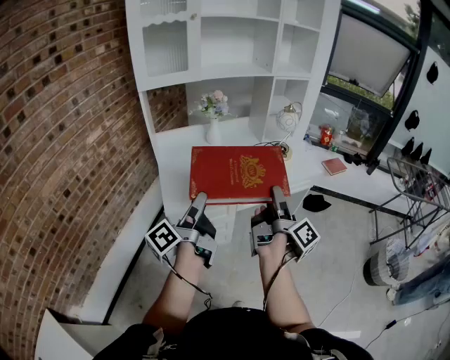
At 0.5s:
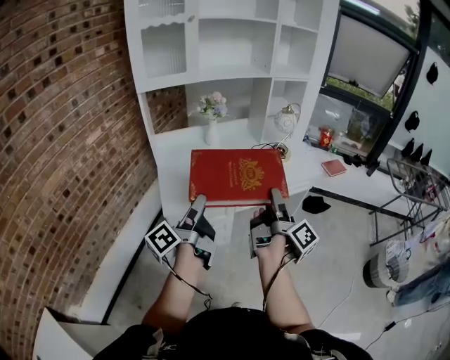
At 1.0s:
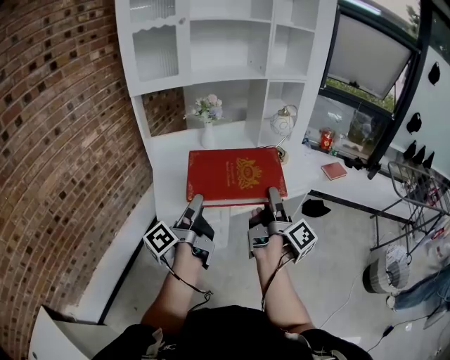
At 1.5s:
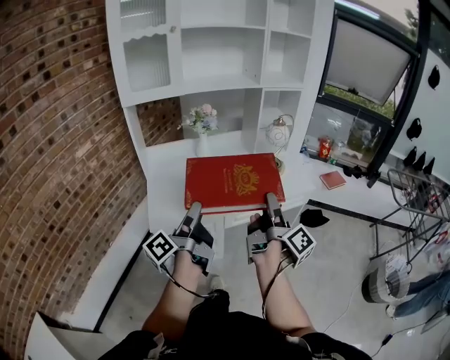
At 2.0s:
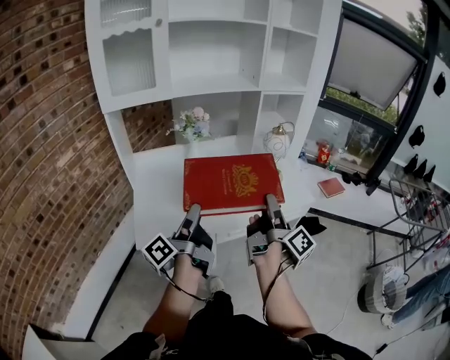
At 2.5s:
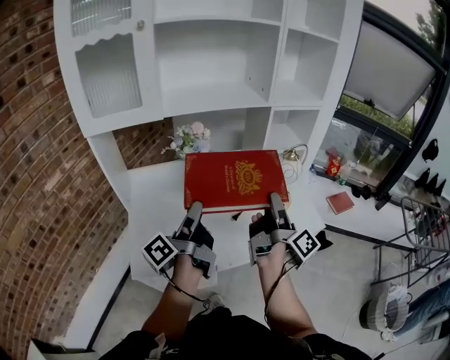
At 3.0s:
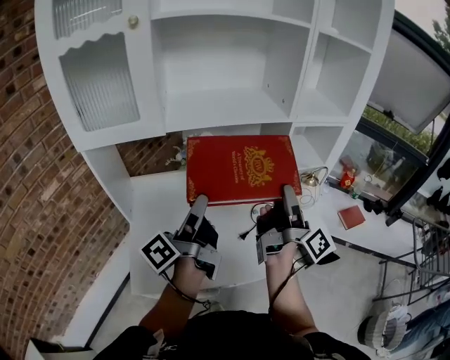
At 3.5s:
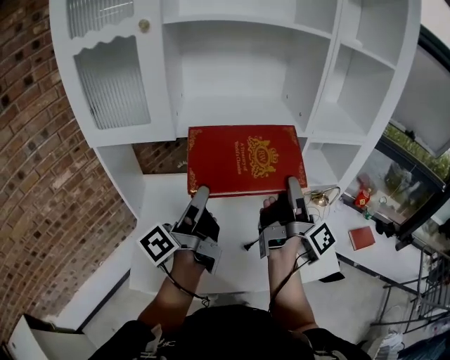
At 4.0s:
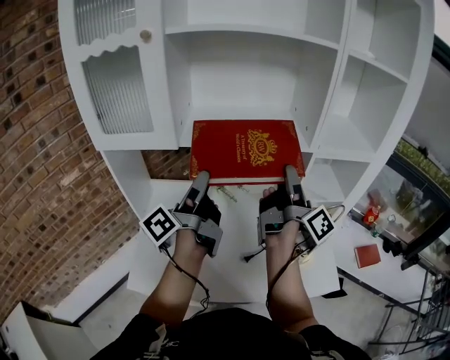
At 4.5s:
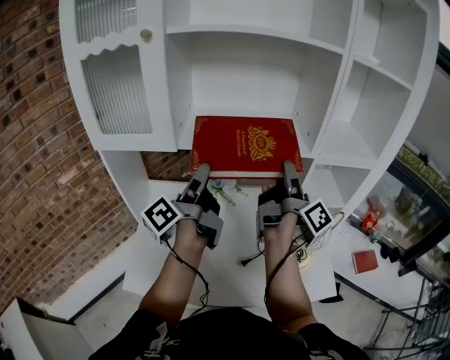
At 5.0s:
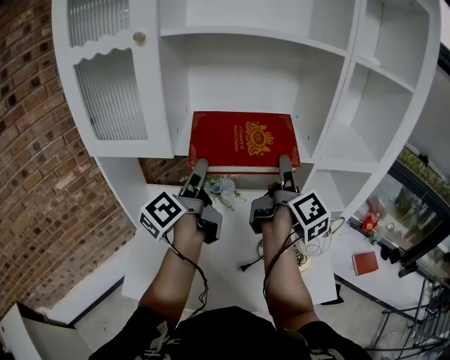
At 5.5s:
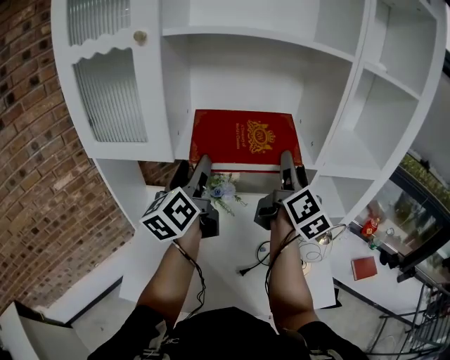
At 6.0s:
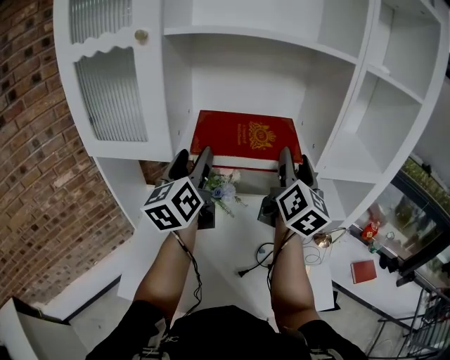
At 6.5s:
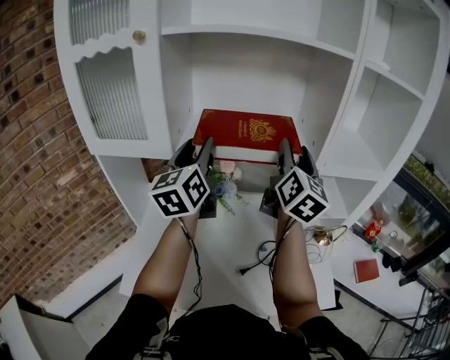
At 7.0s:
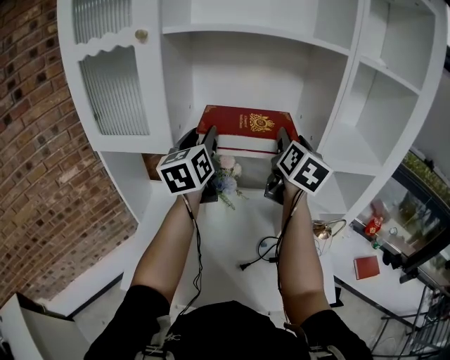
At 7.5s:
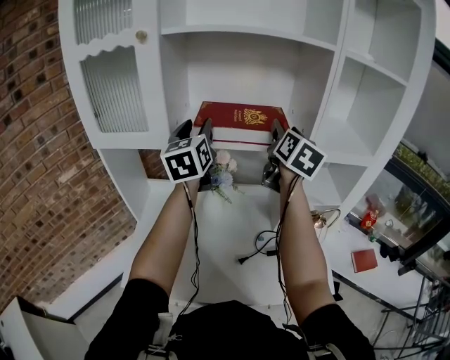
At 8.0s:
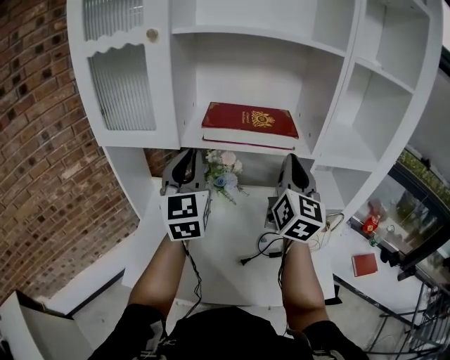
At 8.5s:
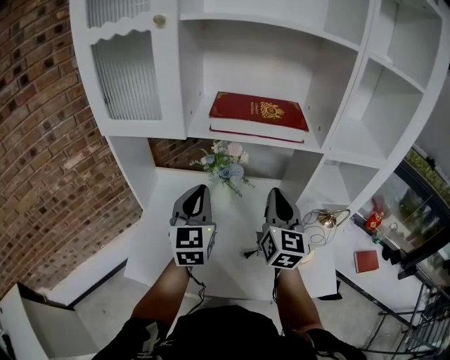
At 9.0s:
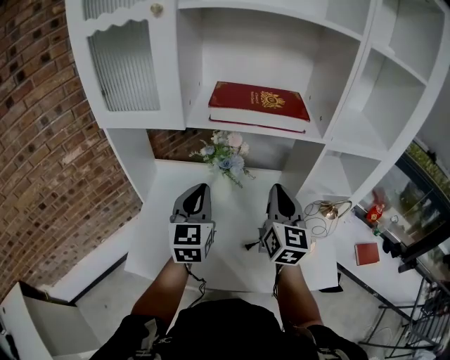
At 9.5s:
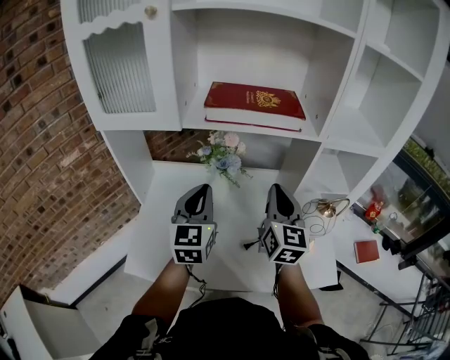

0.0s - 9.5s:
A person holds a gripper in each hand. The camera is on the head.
0.0s - 2.0s: The left gripper is displaced forward and to the right by roughly 20 cm, while the right gripper moves forward, approximately 20 cm.
2.0s - 4.0s: Both grippers move forward, about 40 cm.
4.0s - 5.5s: The grippers both shift forward by roughly 10 cm. The right gripper rolls counterclockwise, seen from behind, by about 40 degrees. Meanwhile the left gripper twists approximately 40 degrees clockwise, seen from behind.
5.5s - 7.5s: The left gripper moves forward, approximately 5 cm, changes its angle by about 30 degrees, and closes its fingers. The right gripper changes place by approximately 5 cm, and turns by approximately 30 degrees.
7.5s - 9.5s: Both grippers travel together downward and backward, about 20 cm. The right gripper closes its fingers. The left gripper closes its fingers.

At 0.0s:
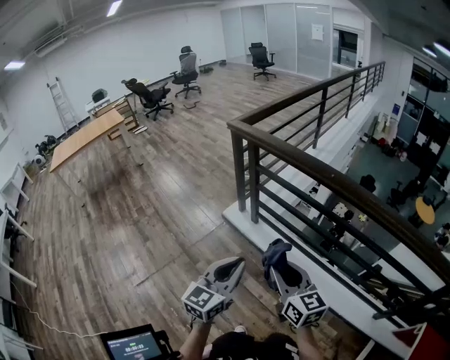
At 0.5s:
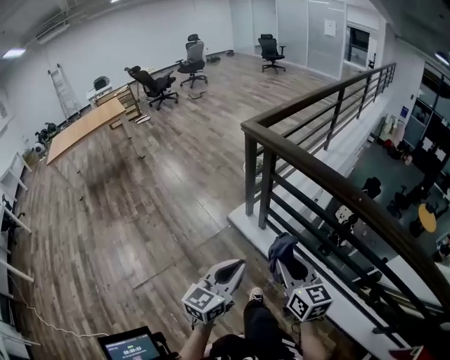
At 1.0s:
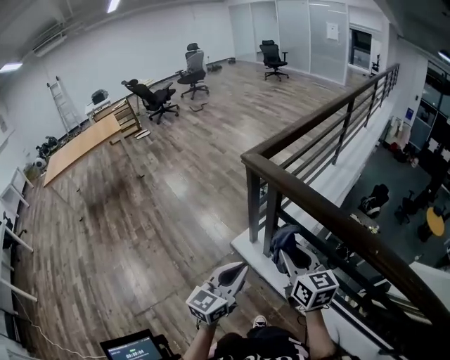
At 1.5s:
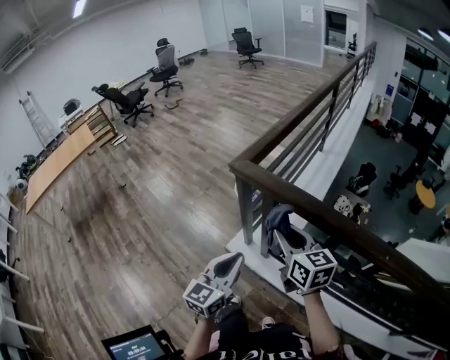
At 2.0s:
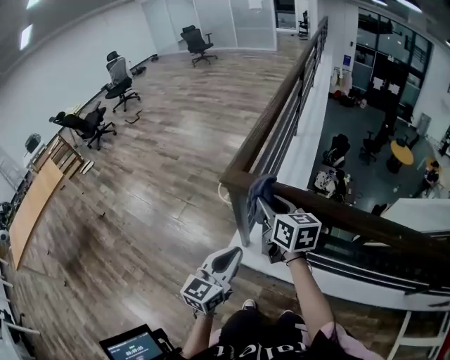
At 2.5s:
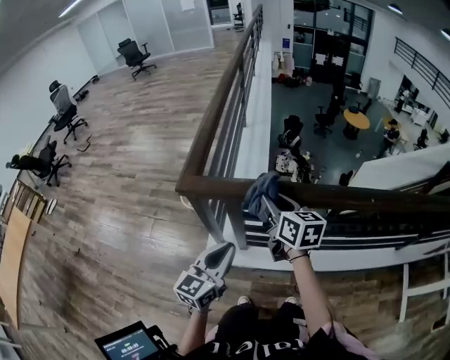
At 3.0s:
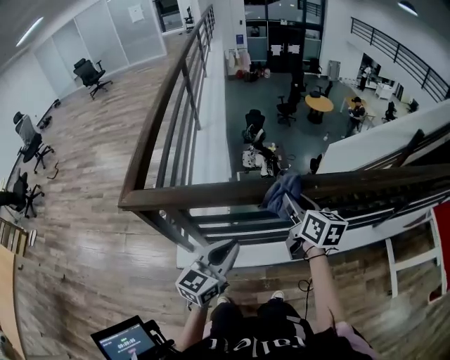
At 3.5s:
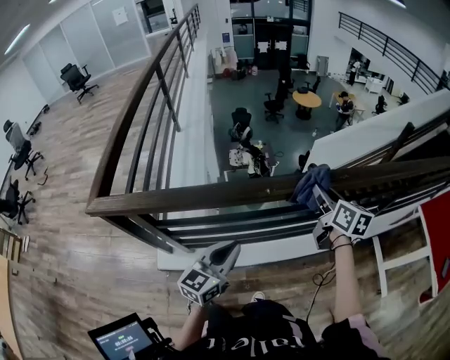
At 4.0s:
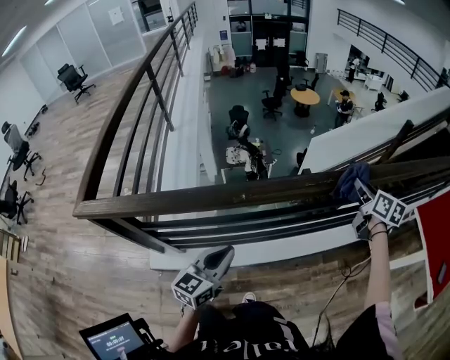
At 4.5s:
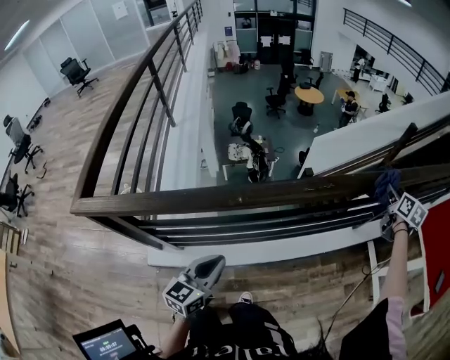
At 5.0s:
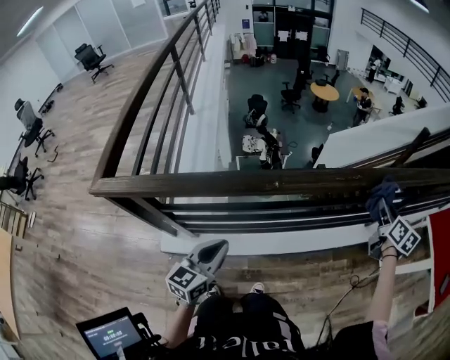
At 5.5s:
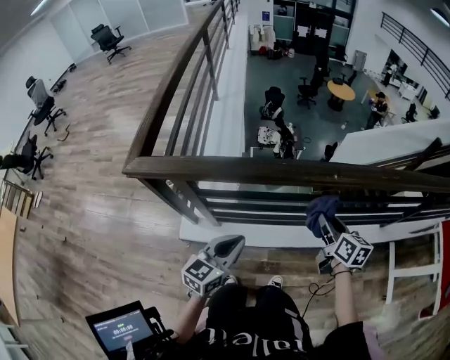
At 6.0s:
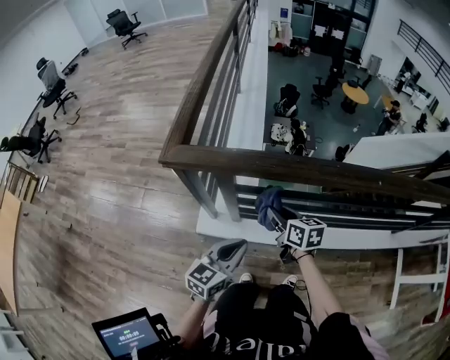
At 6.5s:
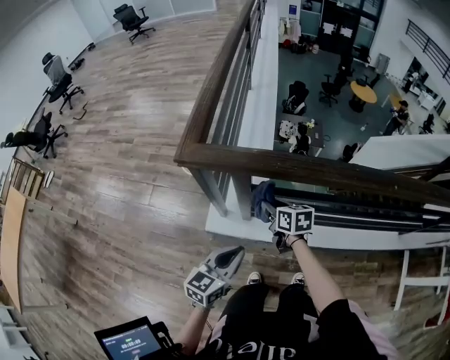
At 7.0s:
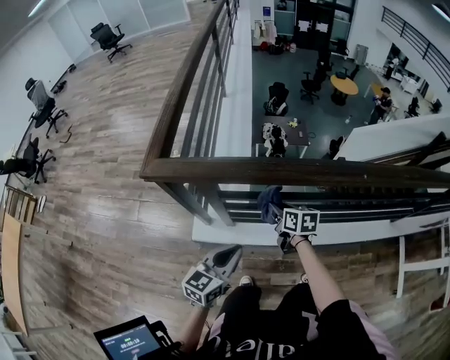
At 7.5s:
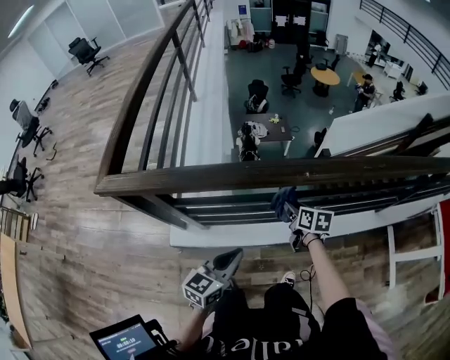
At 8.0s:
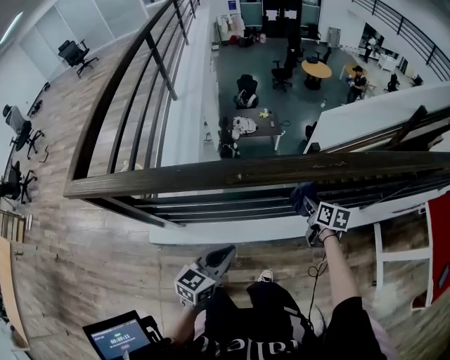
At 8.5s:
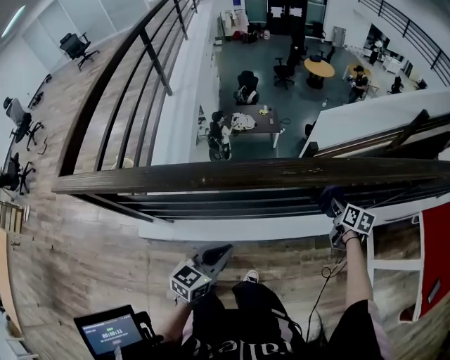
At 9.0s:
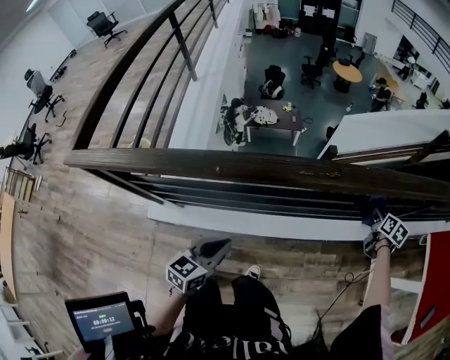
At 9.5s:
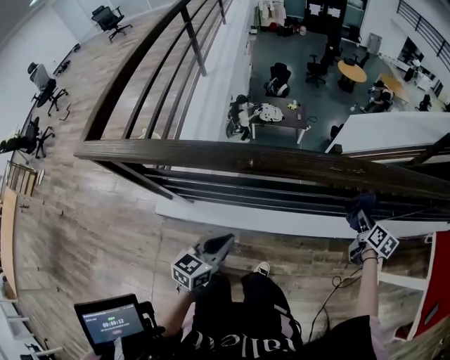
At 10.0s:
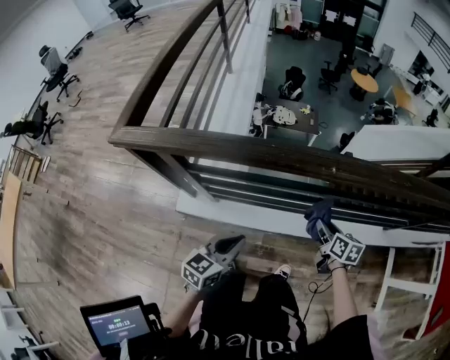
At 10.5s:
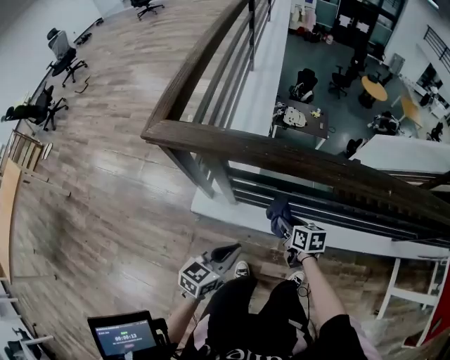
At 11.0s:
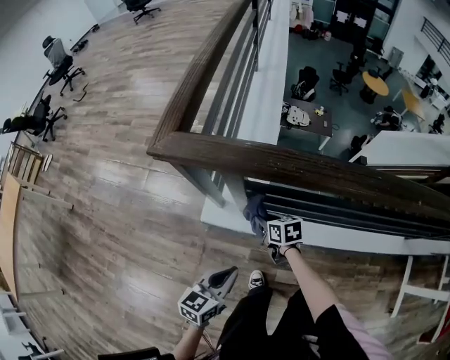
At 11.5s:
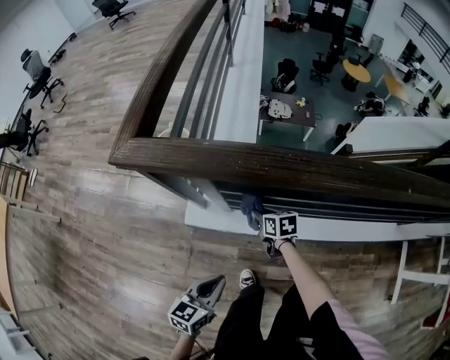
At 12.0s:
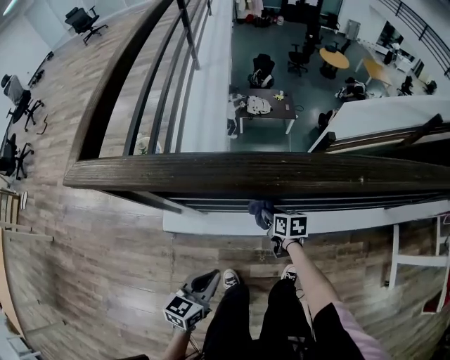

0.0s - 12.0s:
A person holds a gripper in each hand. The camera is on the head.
0.0s - 2.0s: Both grippers are carried forward, about 70 cm. The right gripper changes its angle by about 20 degrees.
2.0s - 4.0s: The two grippers travel together, roughly 70 cm. The left gripper swivels some 40 degrees; the right gripper changes its angle by some 50 degrees.
4.0s - 6.0s: The right gripper shifts by about 70 cm, and swivels roughly 40 degrees. The left gripper moves about 35 cm.
6.0s - 8.0s: The left gripper travels to the right by some 35 cm. The right gripper goes approximately 60 cm to the right, and swivels some 30 degrees.
8.0s - 10.0s: The right gripper moves backward, roughly 10 cm, and travels to the right and back again, about 35 cm each way. Meanwhile the left gripper goes roughly 15 cm to the left and backward.
10.0s - 12.0s: The right gripper goes approximately 30 cm to the left, downward and forward, while the left gripper is displaced to the left and downward by about 20 cm.

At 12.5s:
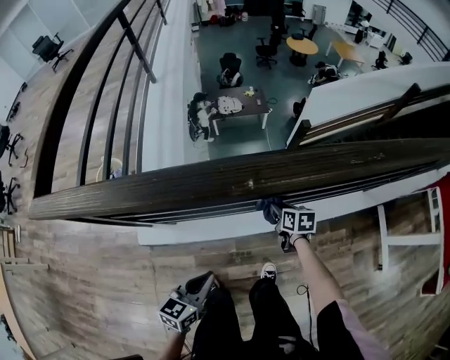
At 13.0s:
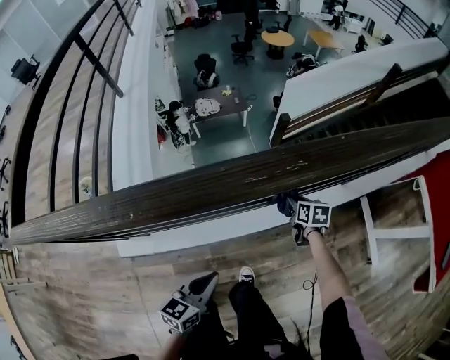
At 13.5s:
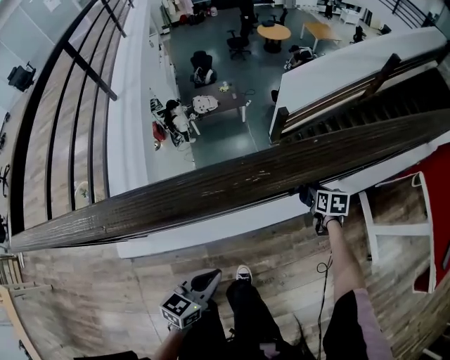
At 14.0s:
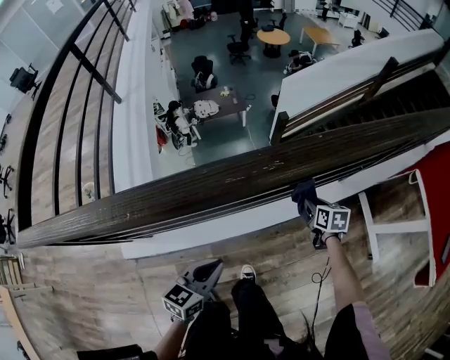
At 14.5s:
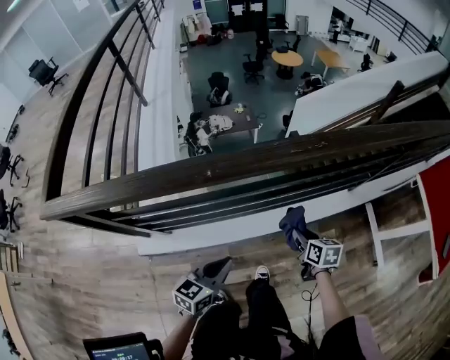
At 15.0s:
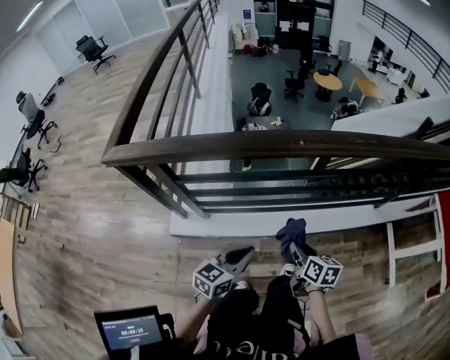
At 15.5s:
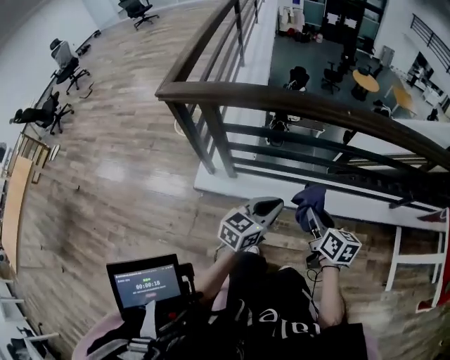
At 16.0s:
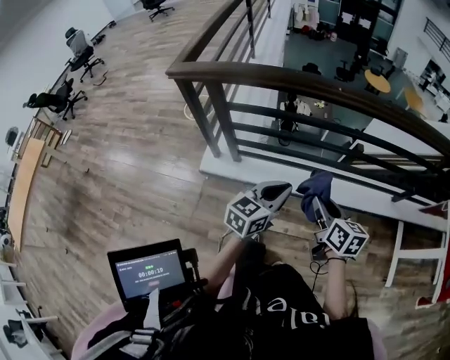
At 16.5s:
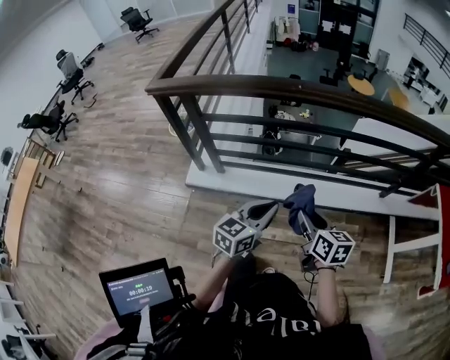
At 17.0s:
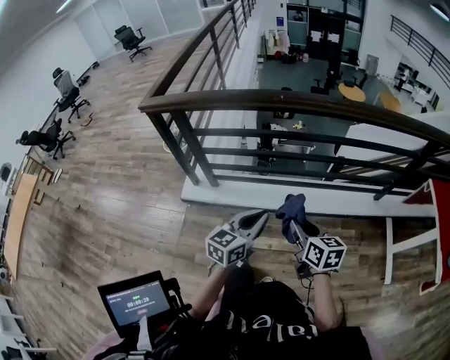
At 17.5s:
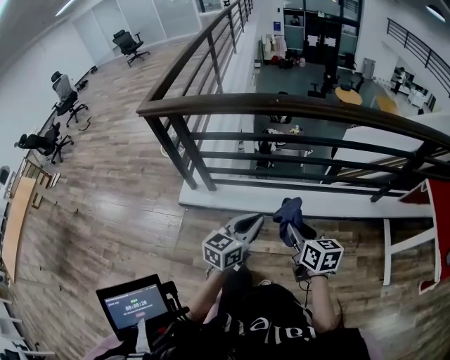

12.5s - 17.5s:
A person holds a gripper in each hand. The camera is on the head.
12.5s - 15.0s: The left gripper goes some 15 cm upward and backward, and goes to the right and returns, some 25 cm each way; the right gripper is displaced backward and upward by roughly 35 cm.
15.0s - 17.5s: The right gripper heads backward, upward and to the right, covering approximately 25 cm, and changes its angle by roughly 20 degrees, while the left gripper travels backward, to the right and upward by roughly 25 cm.
